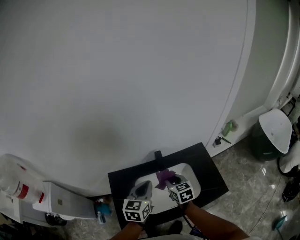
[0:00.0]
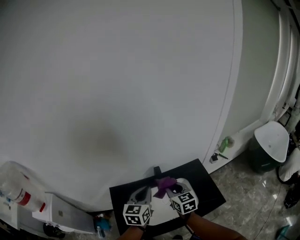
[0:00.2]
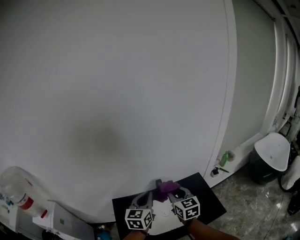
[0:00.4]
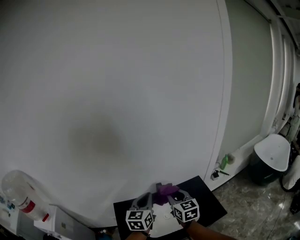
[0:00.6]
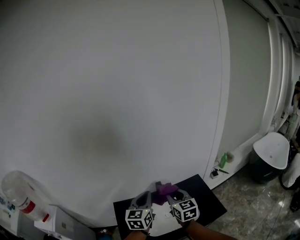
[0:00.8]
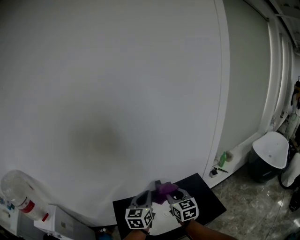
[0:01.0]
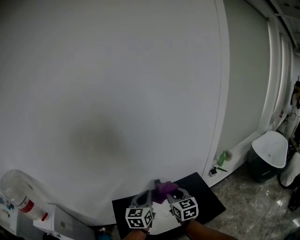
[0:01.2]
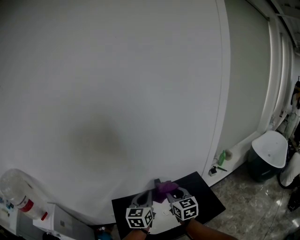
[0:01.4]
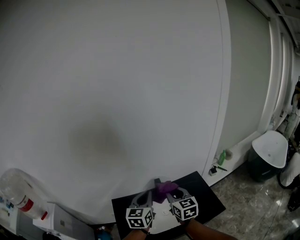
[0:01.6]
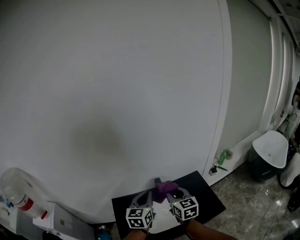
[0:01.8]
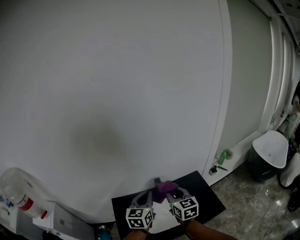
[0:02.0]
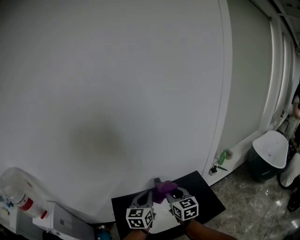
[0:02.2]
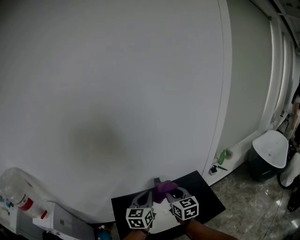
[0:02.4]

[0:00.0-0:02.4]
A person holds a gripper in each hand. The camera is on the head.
0:00.0 to 0:01.2: The right gripper moves upward, some 20 cm, and turns by approximately 20 degrees, while the left gripper travels upward by roughly 10 cm.
0:01.2 to 0:02.4: Neither gripper changes place.

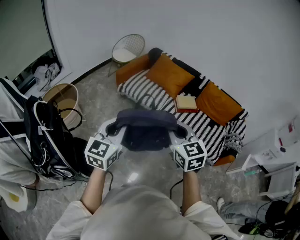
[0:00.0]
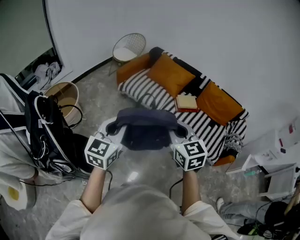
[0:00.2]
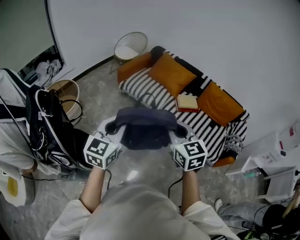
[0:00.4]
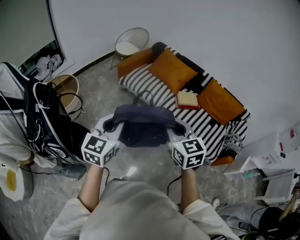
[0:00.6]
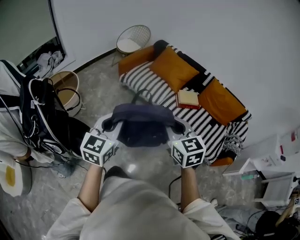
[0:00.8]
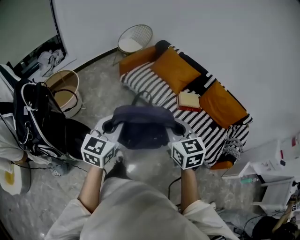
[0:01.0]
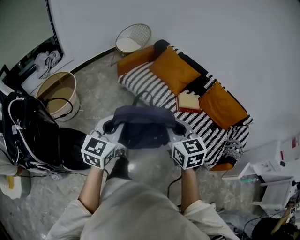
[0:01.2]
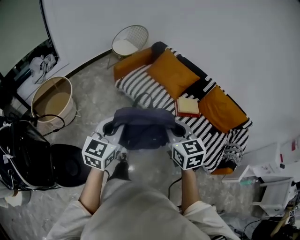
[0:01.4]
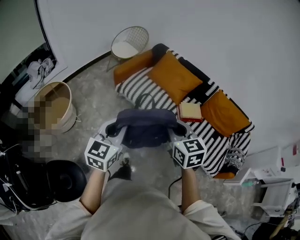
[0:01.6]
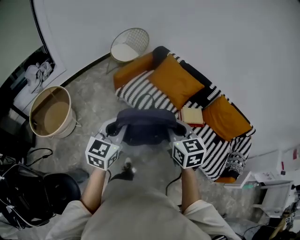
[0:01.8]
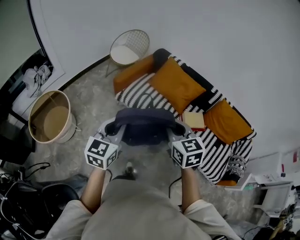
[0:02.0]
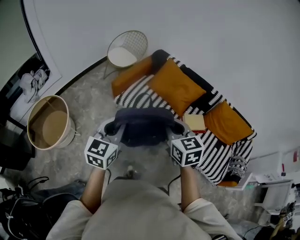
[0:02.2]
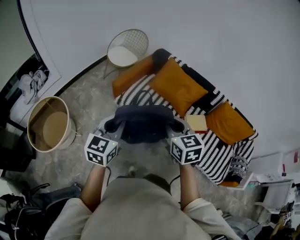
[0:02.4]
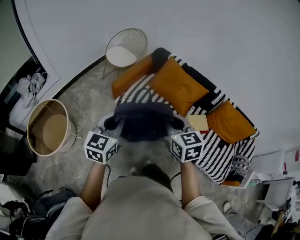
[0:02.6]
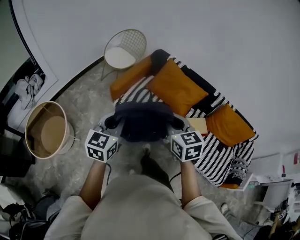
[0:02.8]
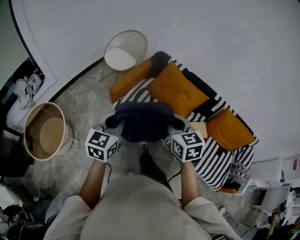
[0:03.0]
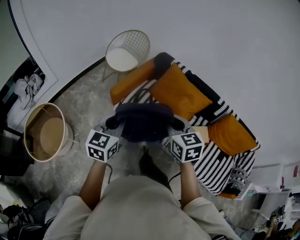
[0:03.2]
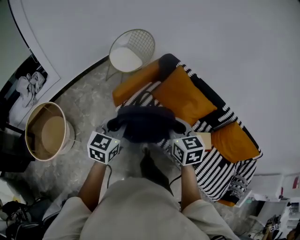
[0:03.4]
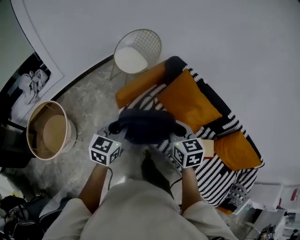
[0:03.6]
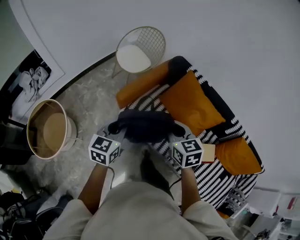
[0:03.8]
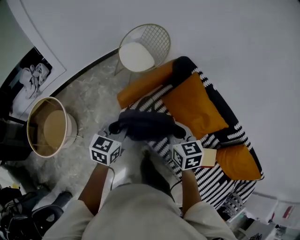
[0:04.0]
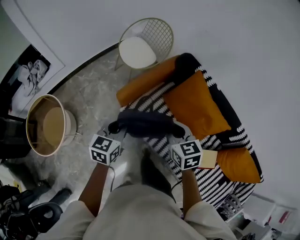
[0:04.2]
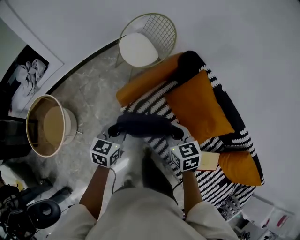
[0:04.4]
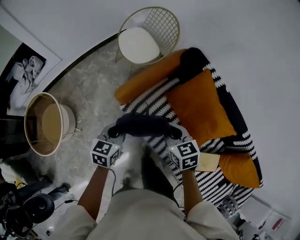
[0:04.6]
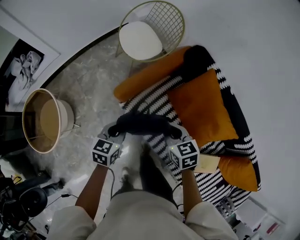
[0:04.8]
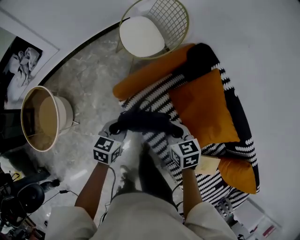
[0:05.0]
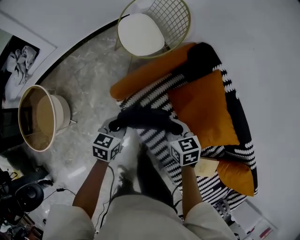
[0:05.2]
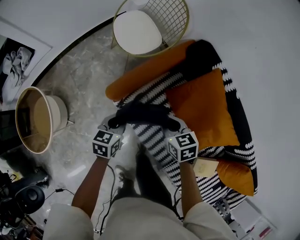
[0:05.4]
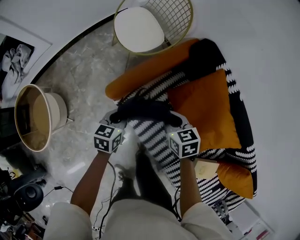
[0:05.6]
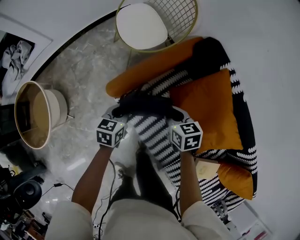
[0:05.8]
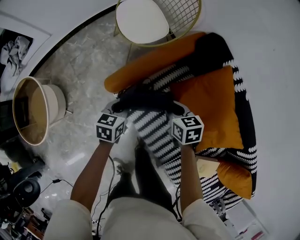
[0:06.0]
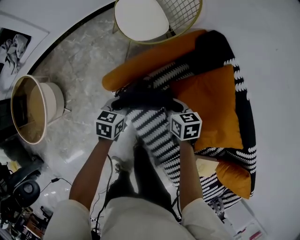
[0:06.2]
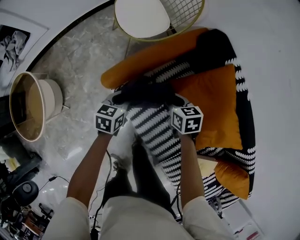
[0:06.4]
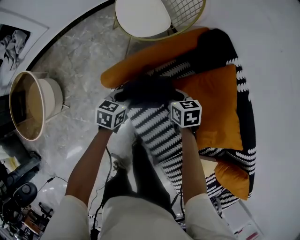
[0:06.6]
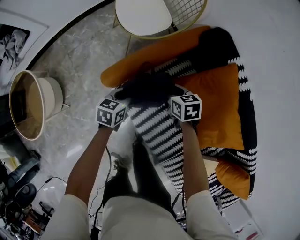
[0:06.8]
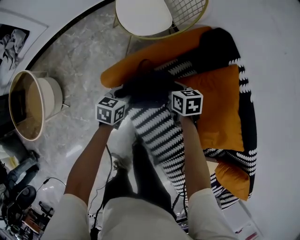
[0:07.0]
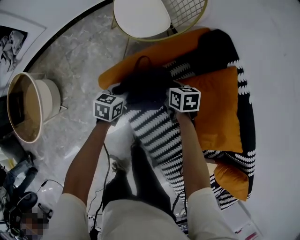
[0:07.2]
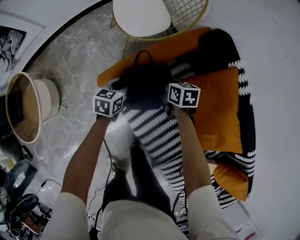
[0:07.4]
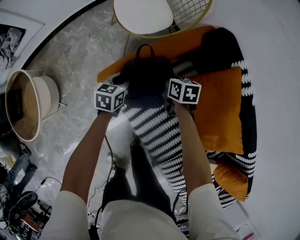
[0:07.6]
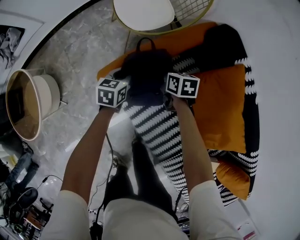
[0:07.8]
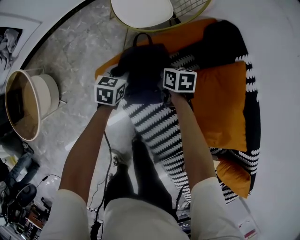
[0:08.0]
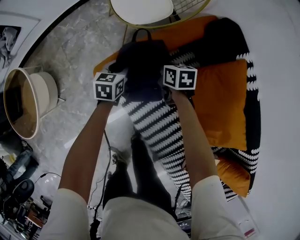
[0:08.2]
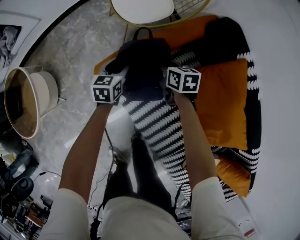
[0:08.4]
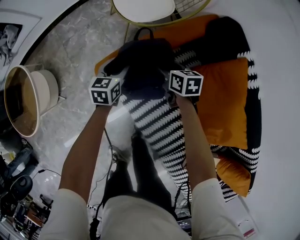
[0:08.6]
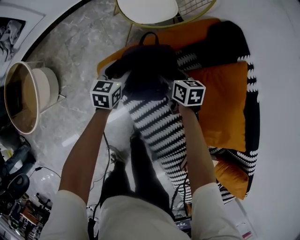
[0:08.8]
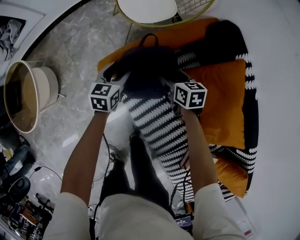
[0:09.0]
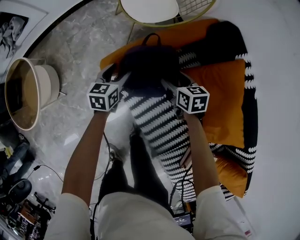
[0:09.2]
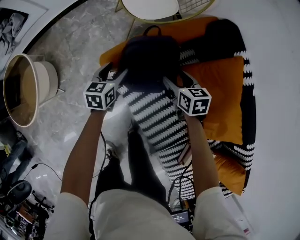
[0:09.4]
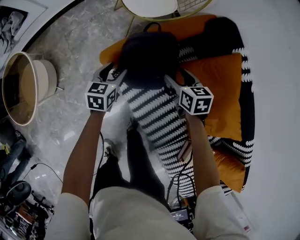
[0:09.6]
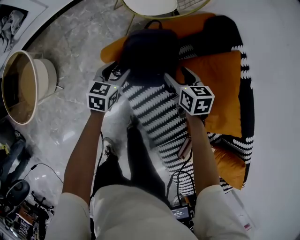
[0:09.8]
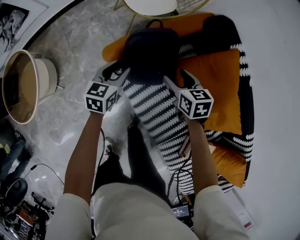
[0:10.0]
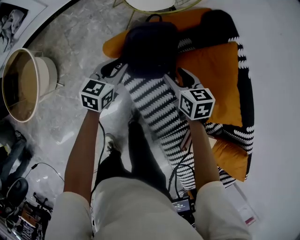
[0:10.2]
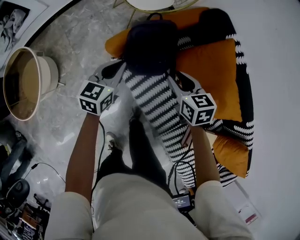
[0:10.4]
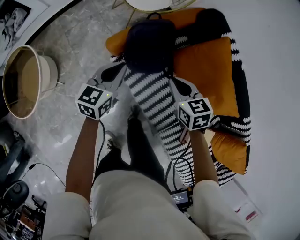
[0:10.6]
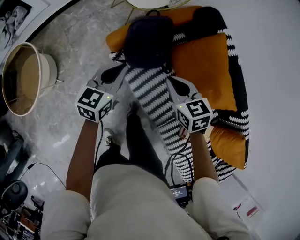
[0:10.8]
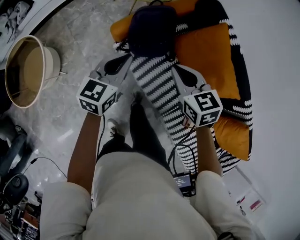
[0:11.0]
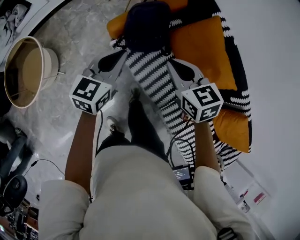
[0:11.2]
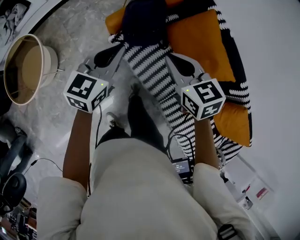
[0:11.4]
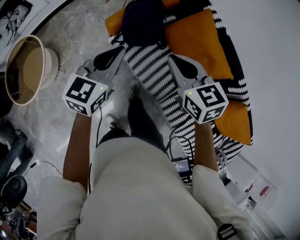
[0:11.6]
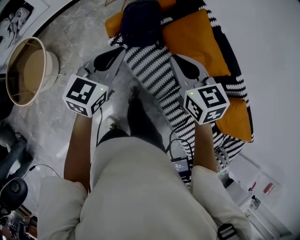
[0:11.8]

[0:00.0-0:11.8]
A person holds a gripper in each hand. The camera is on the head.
0:00.0 to 0:01.4: Both grippers move forward, roughly 15 cm.
0:01.4 to 0:03.0: The two grippers travel together, forward, about 40 cm.
0:03.0 to 0:04.4: Both grippers travel together forward and downward, approximately 35 cm. The left gripper changes its angle by about 20 degrees. Meanwhile the right gripper rotates some 20 degrees.
0:04.4 to 0:06.0: The two grippers go some 30 cm downward and forward.
0:06.0 to 0:07.4: Both grippers move forward and downward, about 15 cm.
0:07.4 to 0:08.8: The left gripper opens its fingers; the right gripper opens its fingers.
0:08.8 to 0:10.4: The two grippers go roughly 20 cm upward and backward. The left gripper closes its fingers, while the right gripper closes its fingers.
0:10.4 to 0:11.8: The left gripper heads backward and upward, covering approximately 35 cm. The right gripper is displaced upward and backward by approximately 35 cm, and closes.

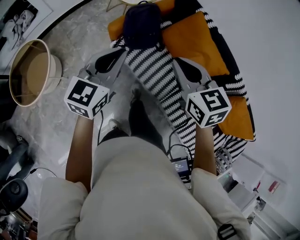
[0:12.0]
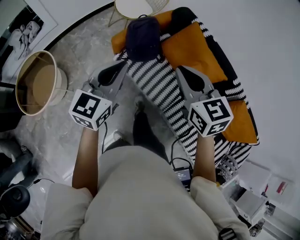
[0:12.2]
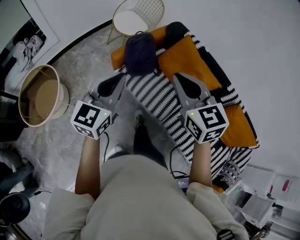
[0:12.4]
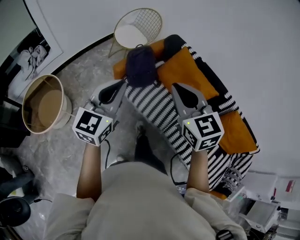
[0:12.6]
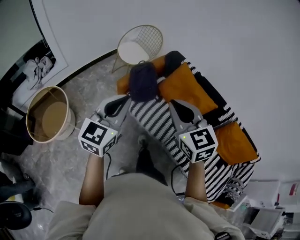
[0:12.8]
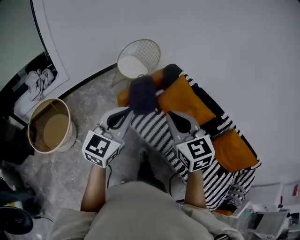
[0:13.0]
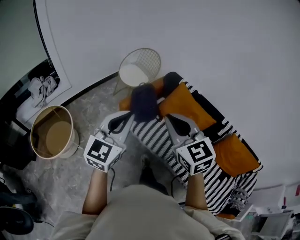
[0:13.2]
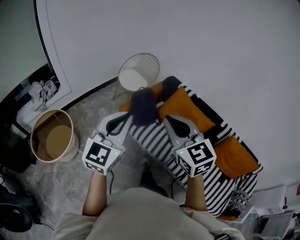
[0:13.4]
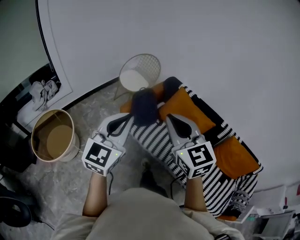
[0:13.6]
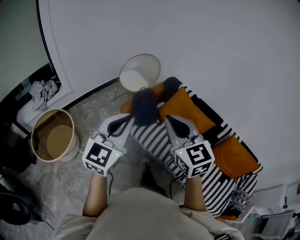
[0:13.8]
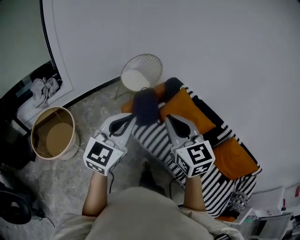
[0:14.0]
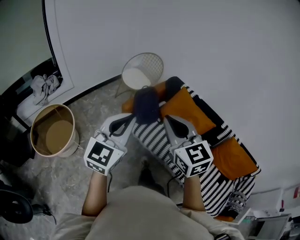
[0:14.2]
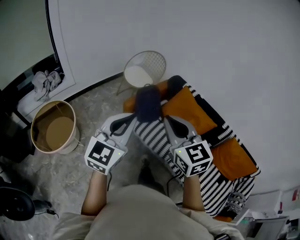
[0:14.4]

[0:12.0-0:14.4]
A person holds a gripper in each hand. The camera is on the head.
0:12.0 to 0:13.2: Both grippers move upward and backward, approximately 25 cm. The right gripper swivels approximately 20 degrees.
0:13.2 to 0:14.4: The grippers make only small movements.

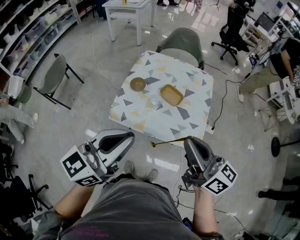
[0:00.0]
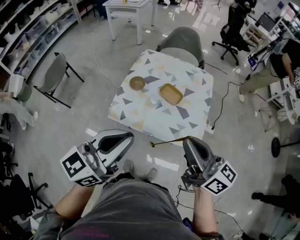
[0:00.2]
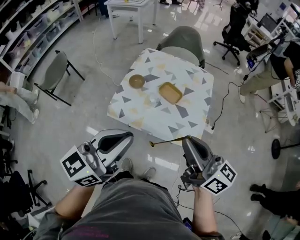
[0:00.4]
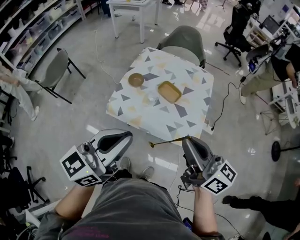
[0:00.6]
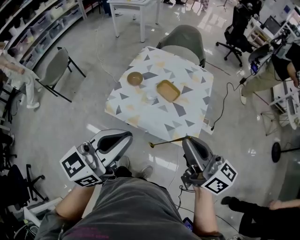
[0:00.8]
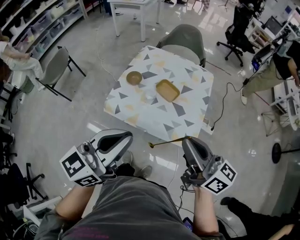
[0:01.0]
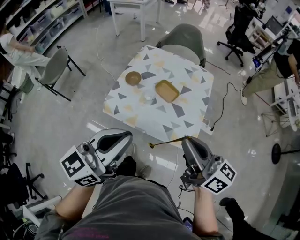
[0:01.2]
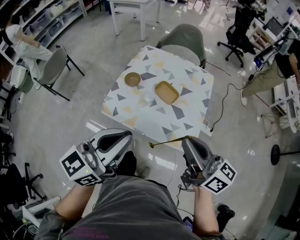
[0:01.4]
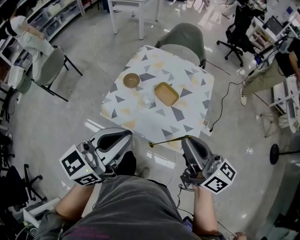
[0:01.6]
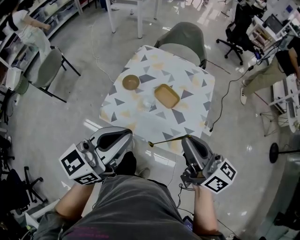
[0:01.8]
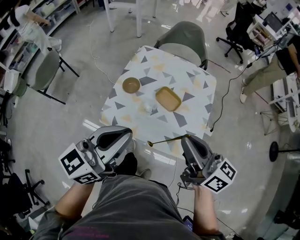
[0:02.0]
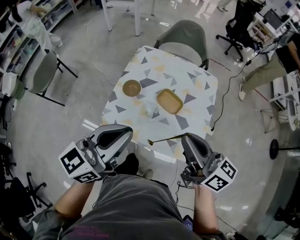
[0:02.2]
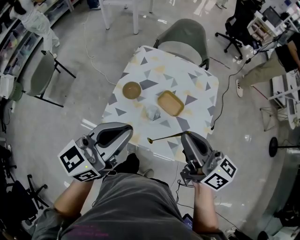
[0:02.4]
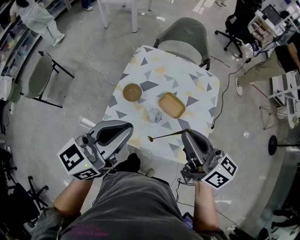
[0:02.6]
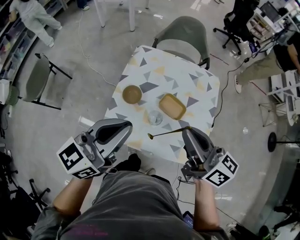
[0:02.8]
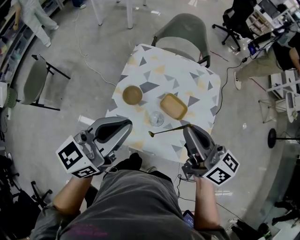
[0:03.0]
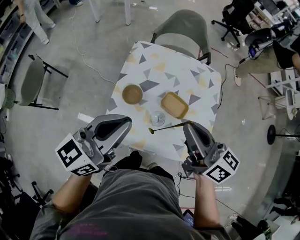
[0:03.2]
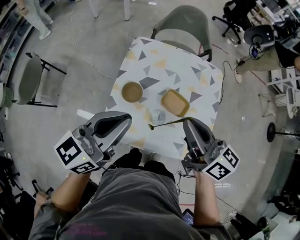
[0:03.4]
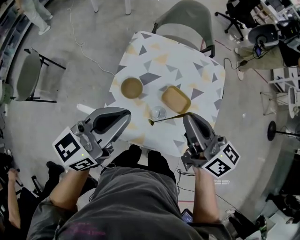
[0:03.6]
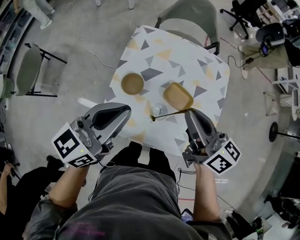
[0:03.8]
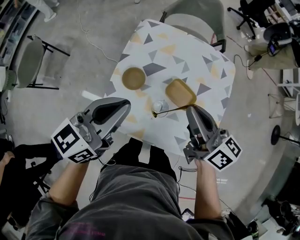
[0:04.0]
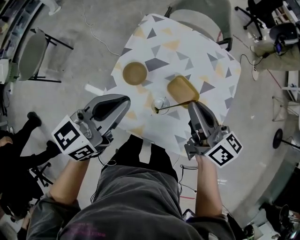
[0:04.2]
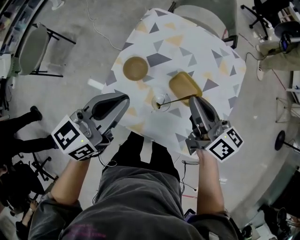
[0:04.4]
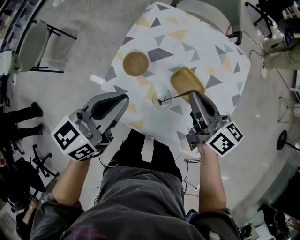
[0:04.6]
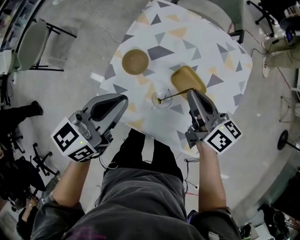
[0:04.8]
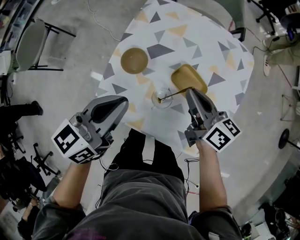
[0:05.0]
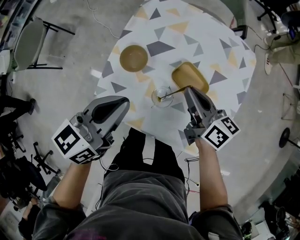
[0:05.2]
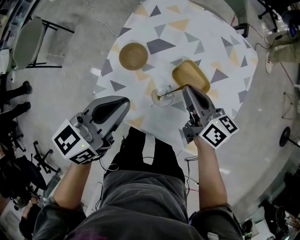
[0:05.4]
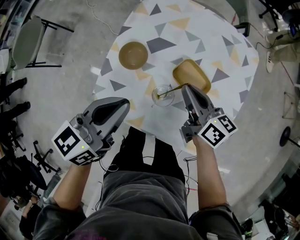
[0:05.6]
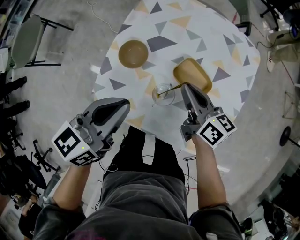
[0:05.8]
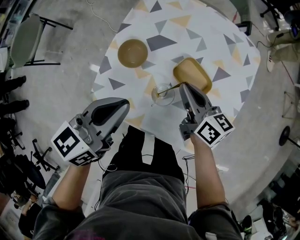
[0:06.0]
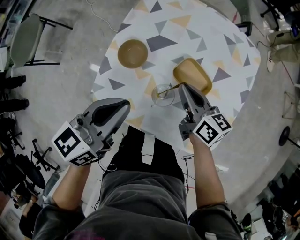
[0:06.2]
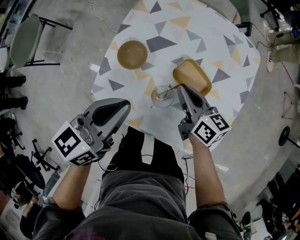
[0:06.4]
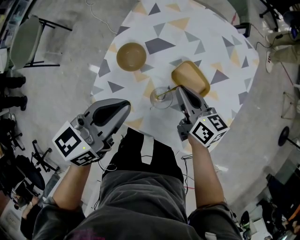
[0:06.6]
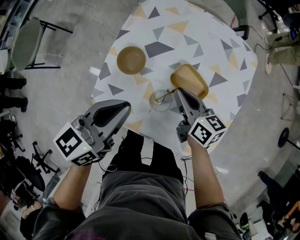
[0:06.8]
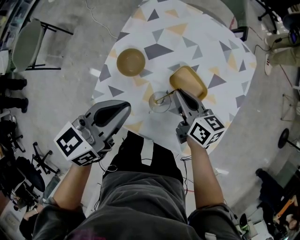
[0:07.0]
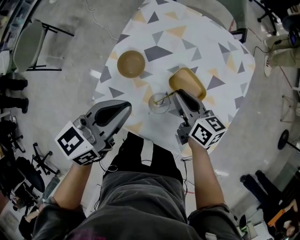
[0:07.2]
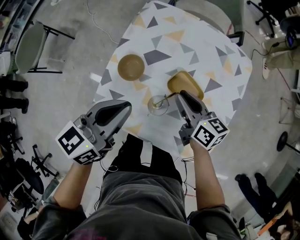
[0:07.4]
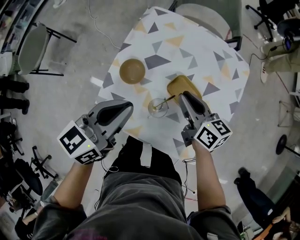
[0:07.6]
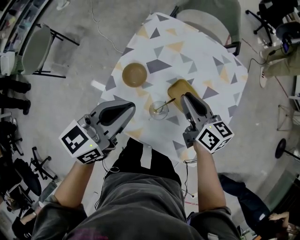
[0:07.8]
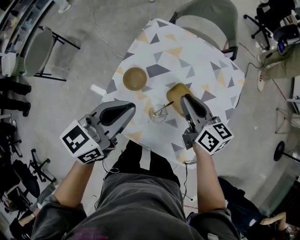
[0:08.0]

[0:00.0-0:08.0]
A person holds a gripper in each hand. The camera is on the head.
0:00.0 to 0:01.6: Both grippers move to the right, about 5 cm.
0:01.6 to 0:03.2: Both grippers travel together forward and to the left, about 25 cm.
0:03.2 to 0:04.8: The two grippers go roughly 20 cm downward.
0:04.8 to 0:06.4: The left gripper shifts some 5 cm downward; the right gripper goes roughly 10 cm downward.
0:06.4 to 0:08.0: The two grippers go some 10 cm upward.
